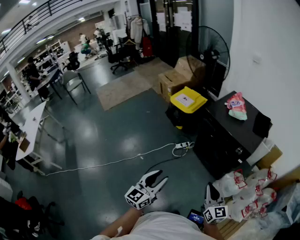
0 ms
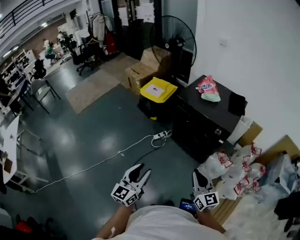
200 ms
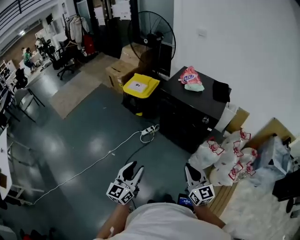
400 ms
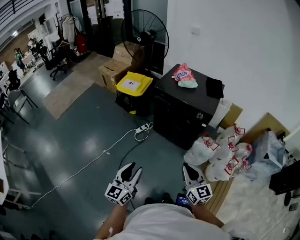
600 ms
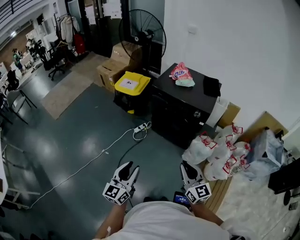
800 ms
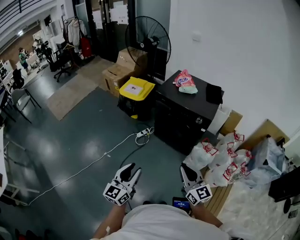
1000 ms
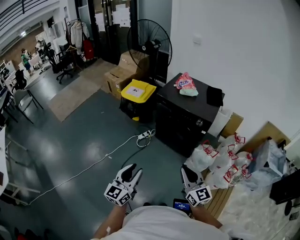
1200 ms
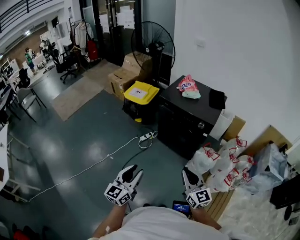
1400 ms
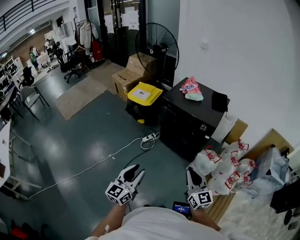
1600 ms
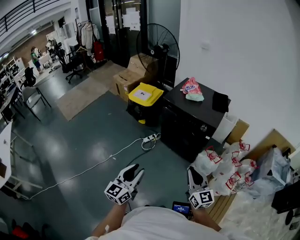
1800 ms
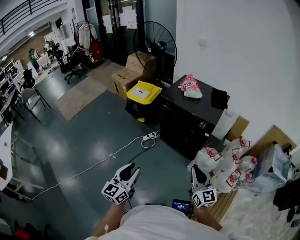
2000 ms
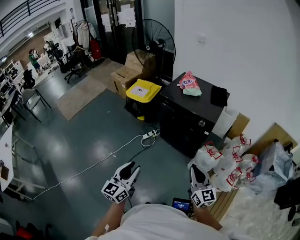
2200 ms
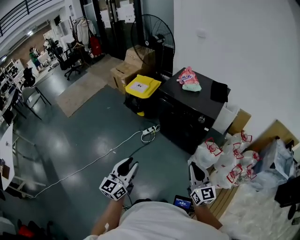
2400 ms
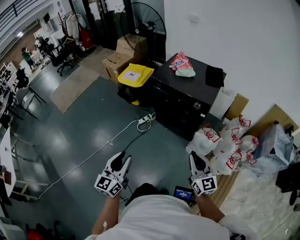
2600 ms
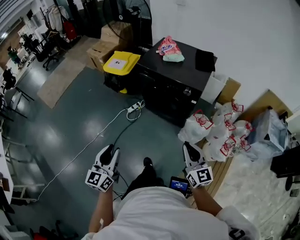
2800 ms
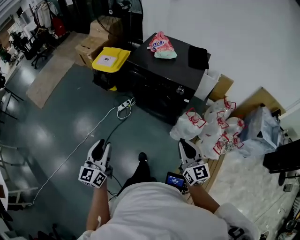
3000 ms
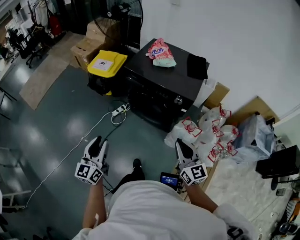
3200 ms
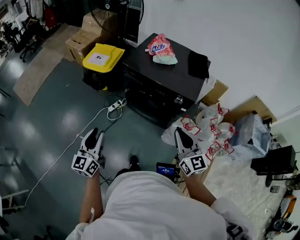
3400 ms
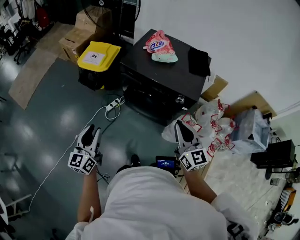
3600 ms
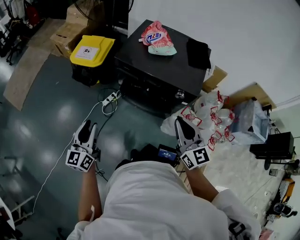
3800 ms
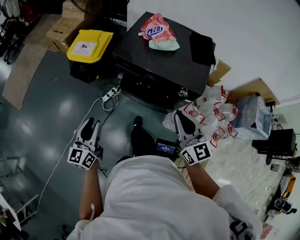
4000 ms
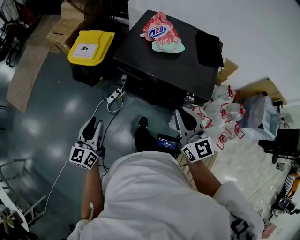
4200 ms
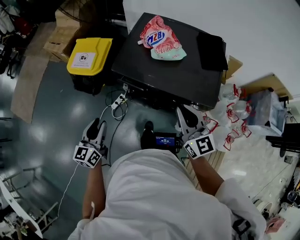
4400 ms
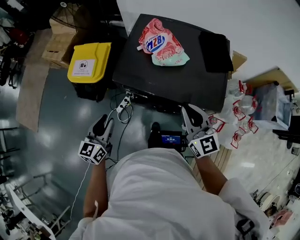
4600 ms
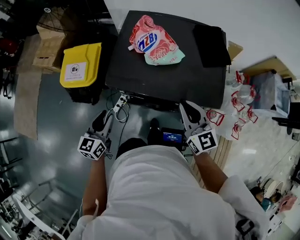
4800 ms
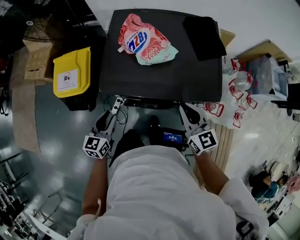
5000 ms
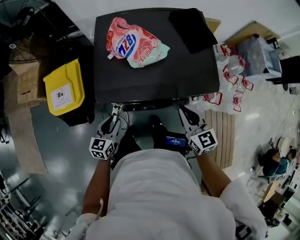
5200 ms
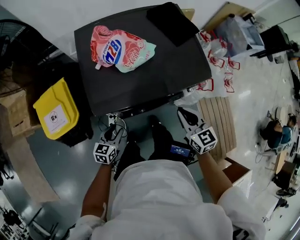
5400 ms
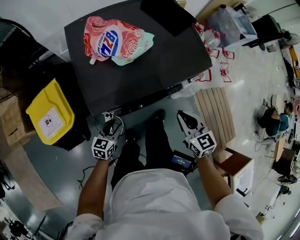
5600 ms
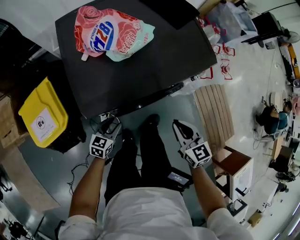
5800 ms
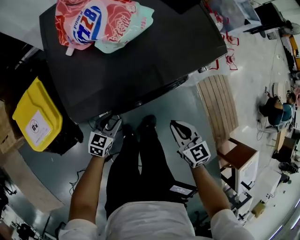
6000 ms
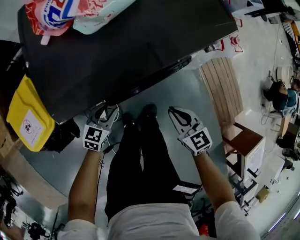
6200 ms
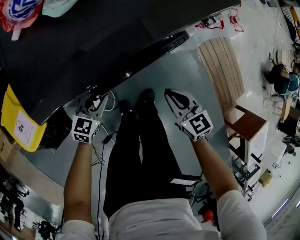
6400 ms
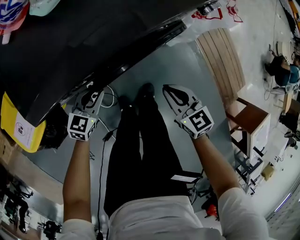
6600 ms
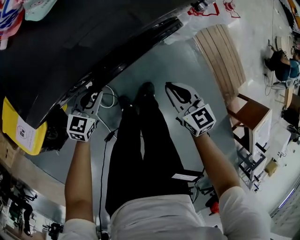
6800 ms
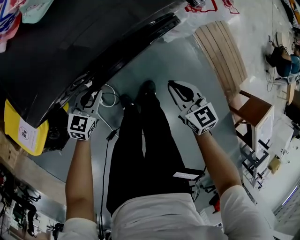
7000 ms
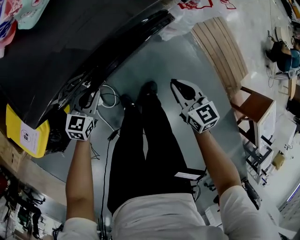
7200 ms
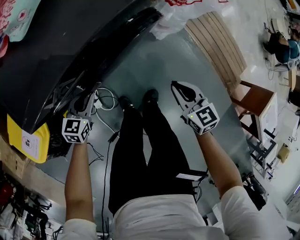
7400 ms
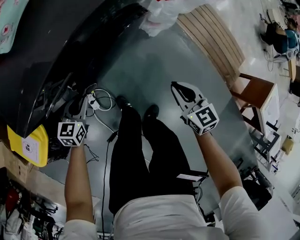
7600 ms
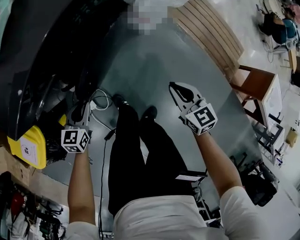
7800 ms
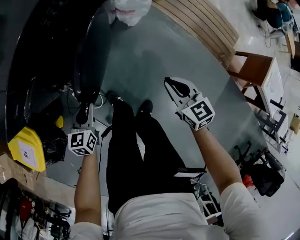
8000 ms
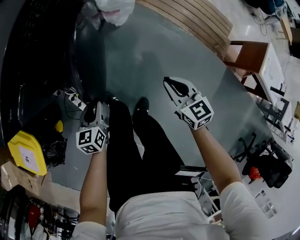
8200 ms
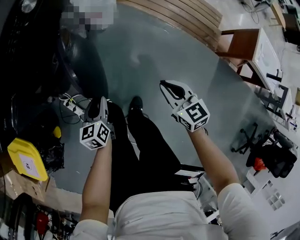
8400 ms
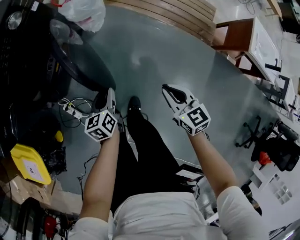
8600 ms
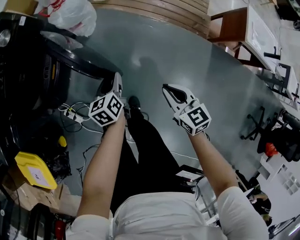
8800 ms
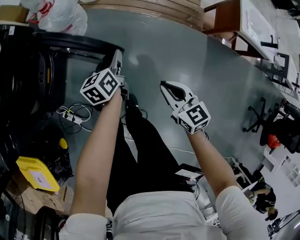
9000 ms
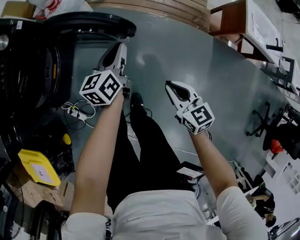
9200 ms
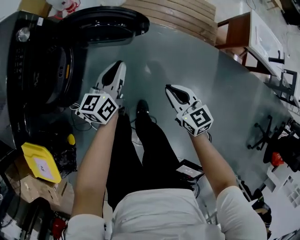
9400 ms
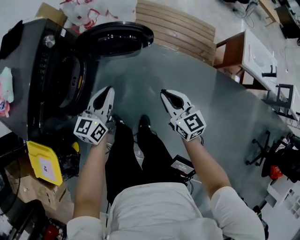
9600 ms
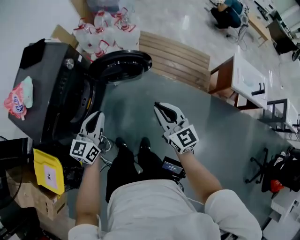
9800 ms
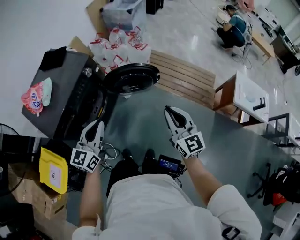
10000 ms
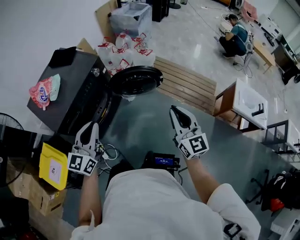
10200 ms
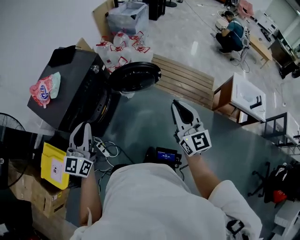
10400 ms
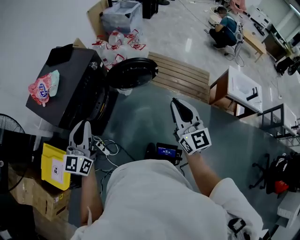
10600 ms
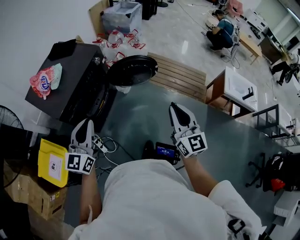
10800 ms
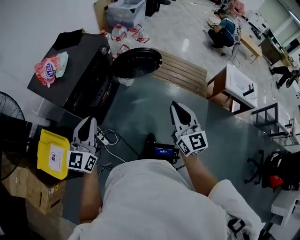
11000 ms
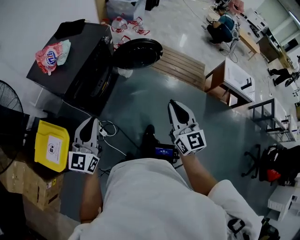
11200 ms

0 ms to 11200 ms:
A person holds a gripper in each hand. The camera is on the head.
1600 ms to 3200 ms: The left gripper travels forward by about 20 cm. The right gripper shifts roughly 15 cm forward and to the right.
3200 ms to 4800 ms: Both grippers are carried forward, roughly 40 cm. The left gripper changes its angle by about 30 degrees.
4800 ms to 6400 ms: Both grippers move downward, roughly 35 cm. The right gripper changes its angle by approximately 40 degrees; the left gripper rotates approximately 60 degrees.
6400 ms to 8000 ms: The left gripper travels to the right and backward by some 15 cm. The right gripper travels to the right and backward by some 25 cm, and changes its angle by some 20 degrees.
8000 ms to 9600 ms: The right gripper moves about 25 cm, and rotates some 30 degrees. Meanwhile the left gripper changes place by about 35 cm, and turns by approximately 30 degrees.
9600 ms to 11200 ms: The left gripper travels backward, upward and to the left by approximately 50 cm, and turns by about 30 degrees, while the right gripper moves upward, backward and to the left, approximately 40 cm, and swivels about 30 degrees.

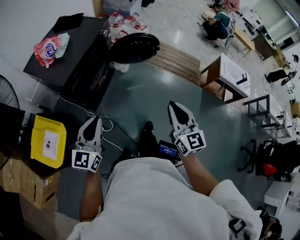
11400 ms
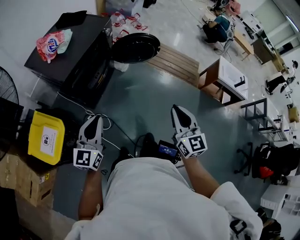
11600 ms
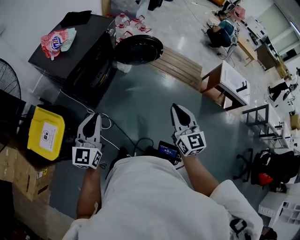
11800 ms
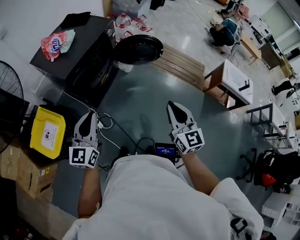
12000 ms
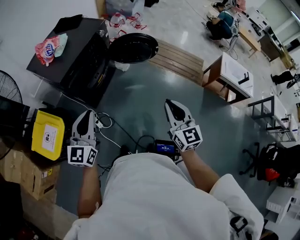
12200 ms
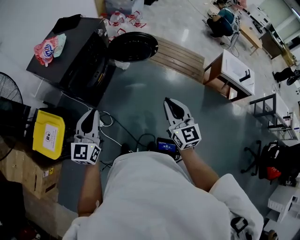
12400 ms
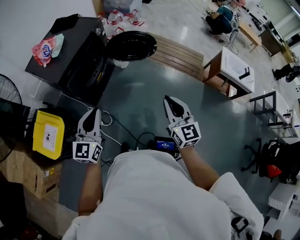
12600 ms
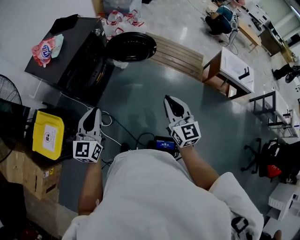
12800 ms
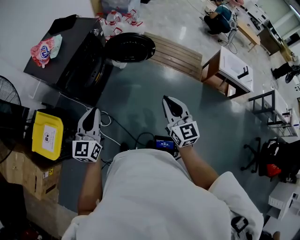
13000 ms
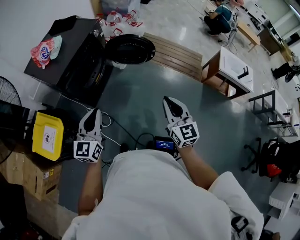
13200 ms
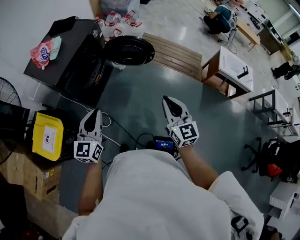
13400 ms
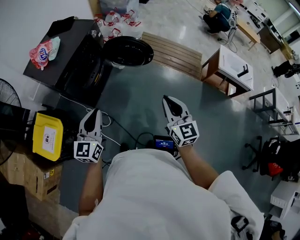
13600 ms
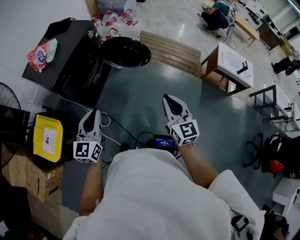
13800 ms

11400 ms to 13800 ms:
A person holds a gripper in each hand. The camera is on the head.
11400 ms to 12600 ms: The grippers both shift to the right by about 10 cm.
12600 ms to 13800 ms: There are only small adjustments of the grippers.

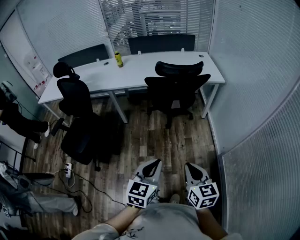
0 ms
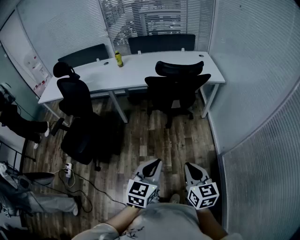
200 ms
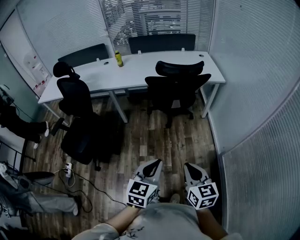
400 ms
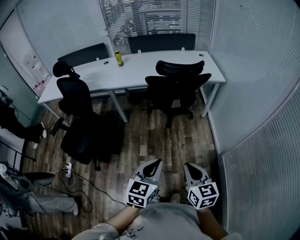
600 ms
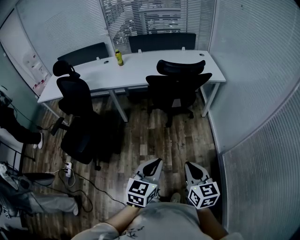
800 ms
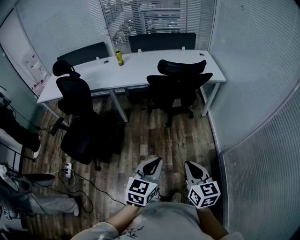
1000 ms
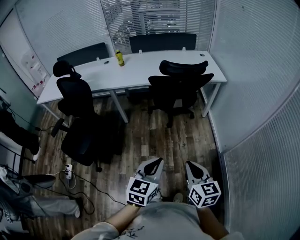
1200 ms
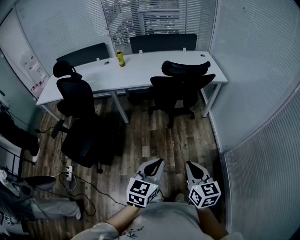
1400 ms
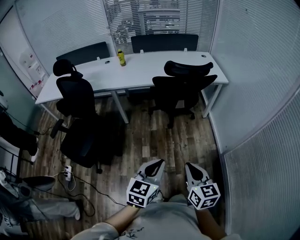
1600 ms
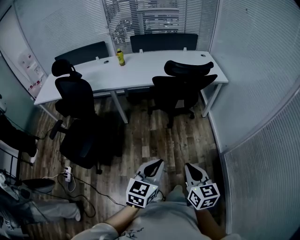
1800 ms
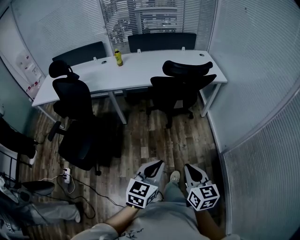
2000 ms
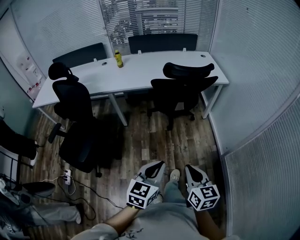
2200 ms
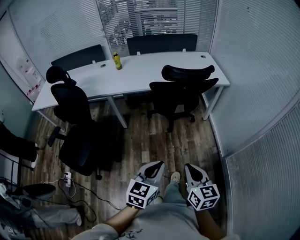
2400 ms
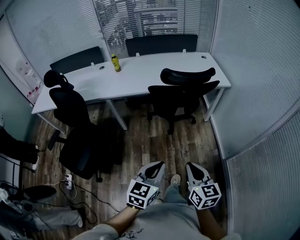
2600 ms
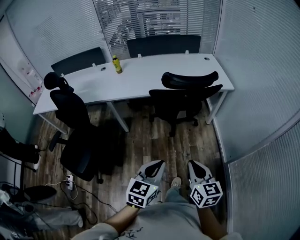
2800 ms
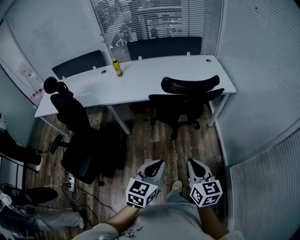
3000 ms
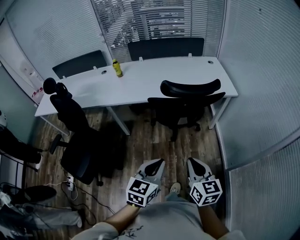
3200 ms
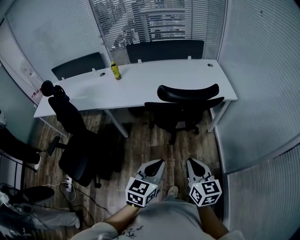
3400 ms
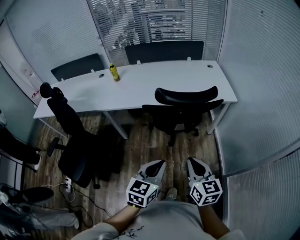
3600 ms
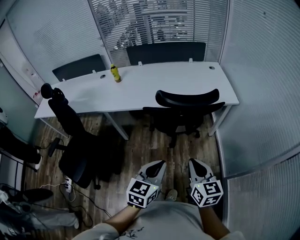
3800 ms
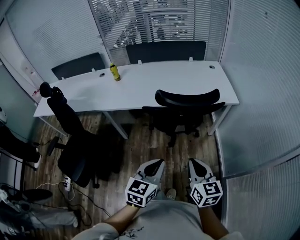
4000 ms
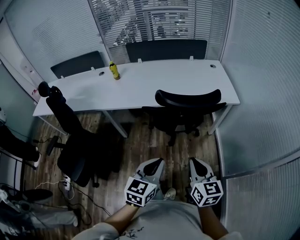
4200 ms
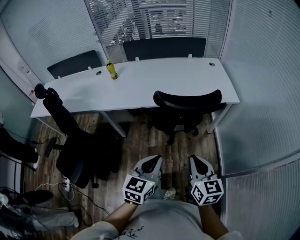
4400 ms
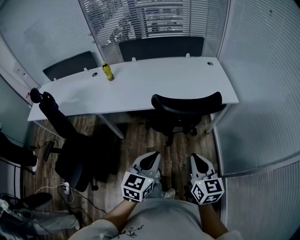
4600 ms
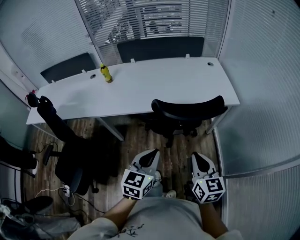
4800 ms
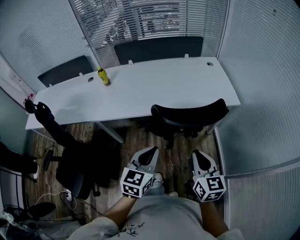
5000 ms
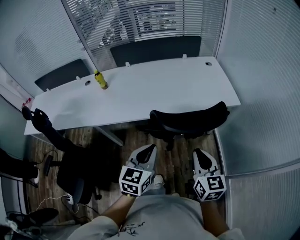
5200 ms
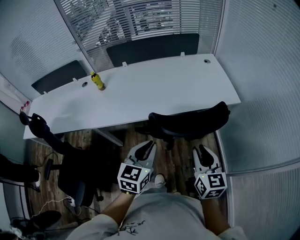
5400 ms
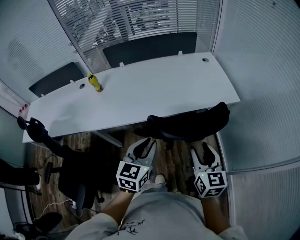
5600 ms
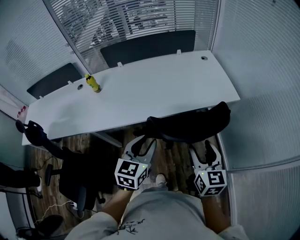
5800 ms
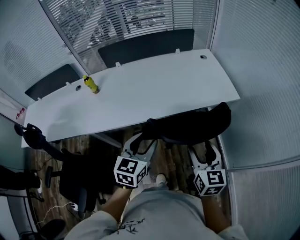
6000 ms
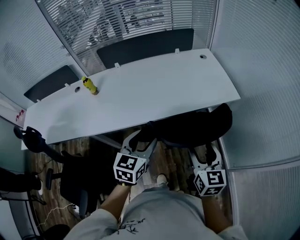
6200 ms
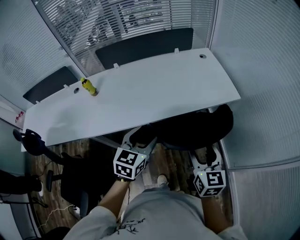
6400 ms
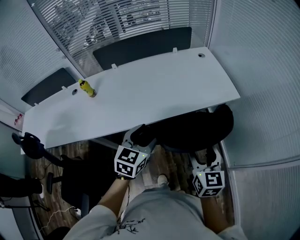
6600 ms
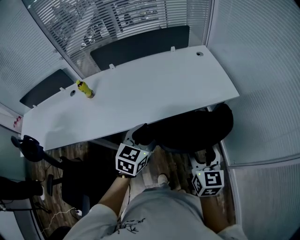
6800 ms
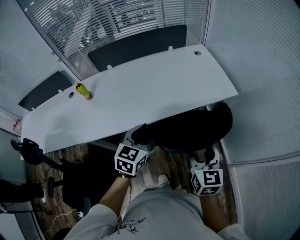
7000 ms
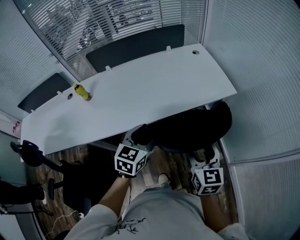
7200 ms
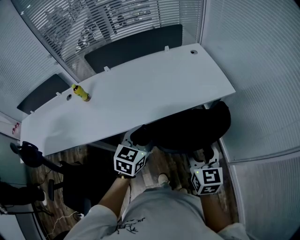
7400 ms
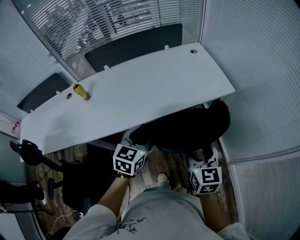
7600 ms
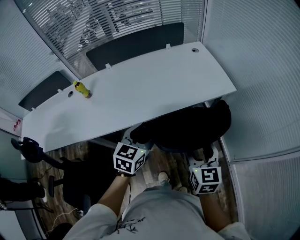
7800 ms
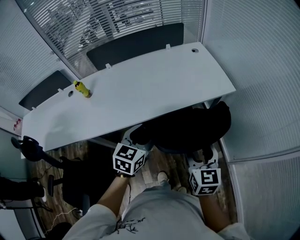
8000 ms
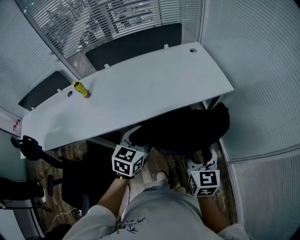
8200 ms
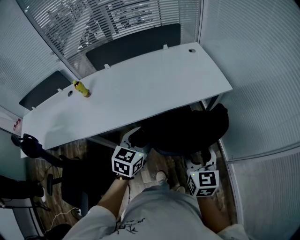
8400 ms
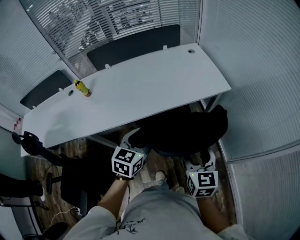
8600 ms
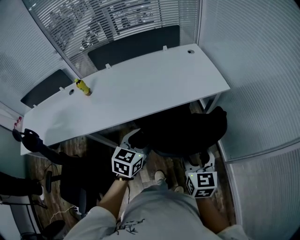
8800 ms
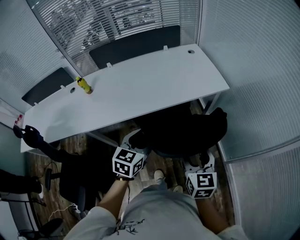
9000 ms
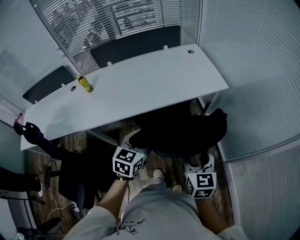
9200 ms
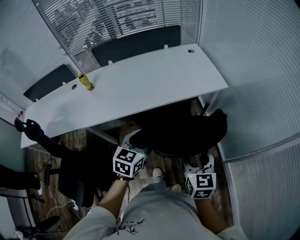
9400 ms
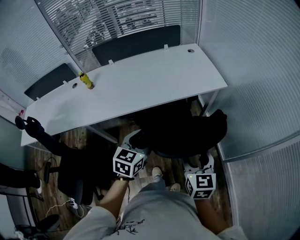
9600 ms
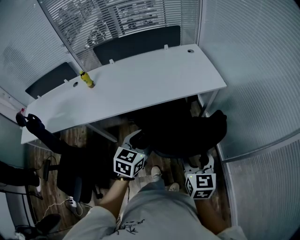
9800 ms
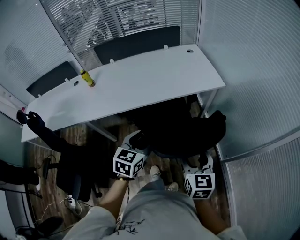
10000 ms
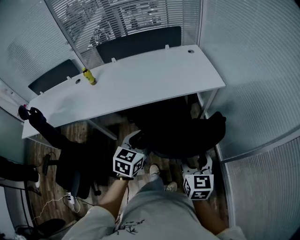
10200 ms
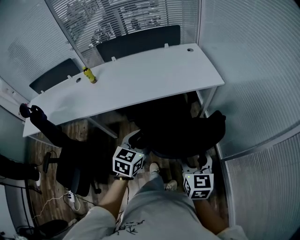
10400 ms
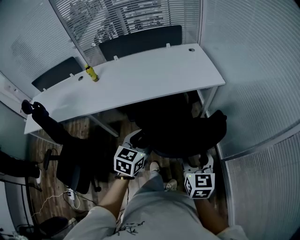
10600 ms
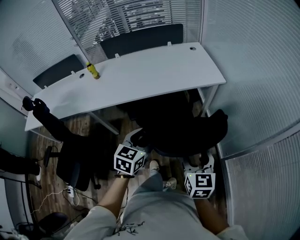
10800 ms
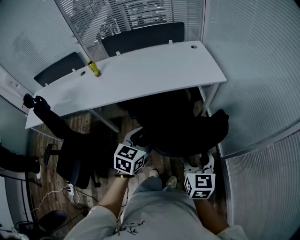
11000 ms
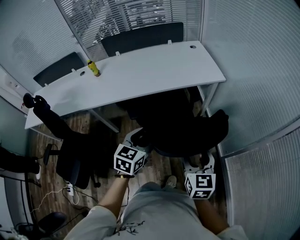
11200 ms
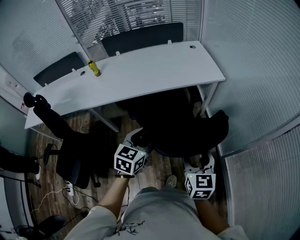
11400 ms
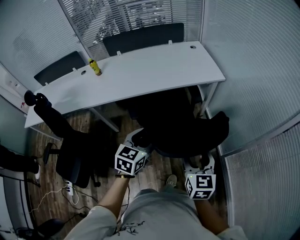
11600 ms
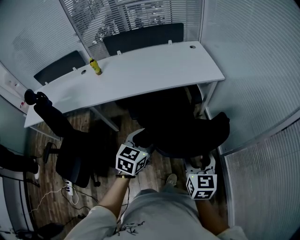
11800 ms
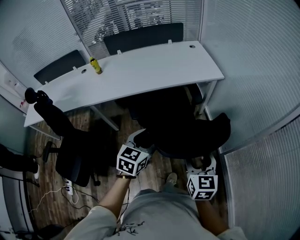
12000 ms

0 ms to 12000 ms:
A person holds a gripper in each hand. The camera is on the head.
0 ms to 1600 ms: Both grippers move to the left, some 10 cm.
1600 ms to 3000 ms: Both grippers travel together forward, about 20 cm.
3000 ms to 4400 ms: The two grippers go approximately 15 cm forward.
4400 ms to 6000 ms: The two grippers go approximately 20 cm forward. The left gripper opens up. Meanwhile the right gripper opens its fingers.
6000 ms to 7600 ms: The left gripper is displaced forward by about 5 cm.
7600 ms to 9000 ms: Both grippers travel together backward, approximately 10 cm.
9000 ms to 10400 ms: The grippers both shift backward and to the right by approximately 10 cm.
10400 ms to 12000 ms: Both grippers move backward, roughly 10 cm.
